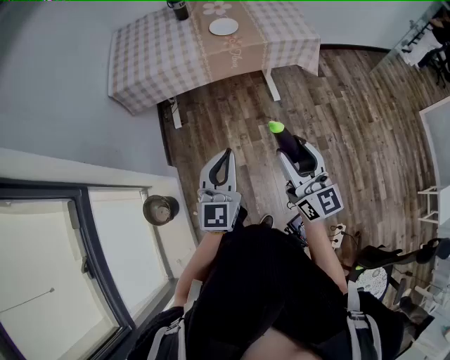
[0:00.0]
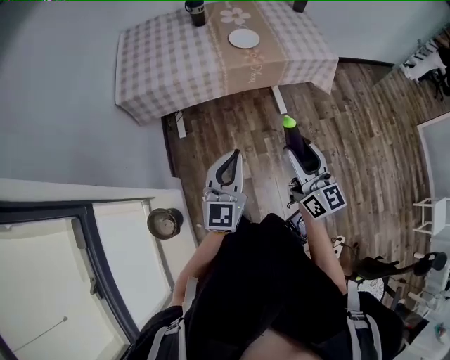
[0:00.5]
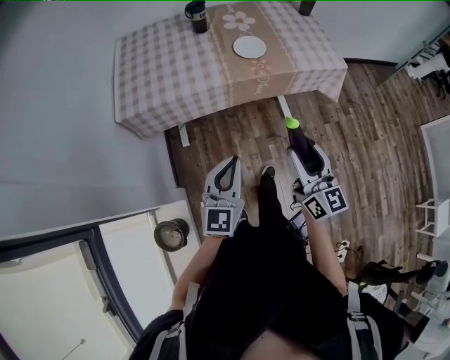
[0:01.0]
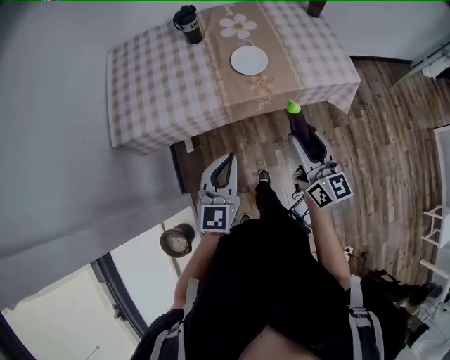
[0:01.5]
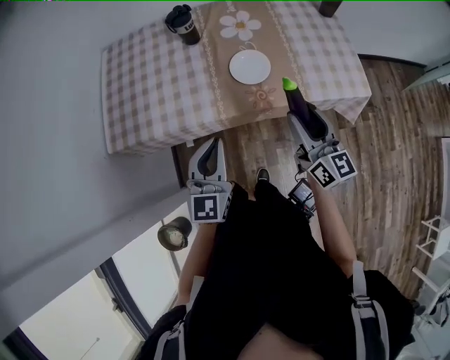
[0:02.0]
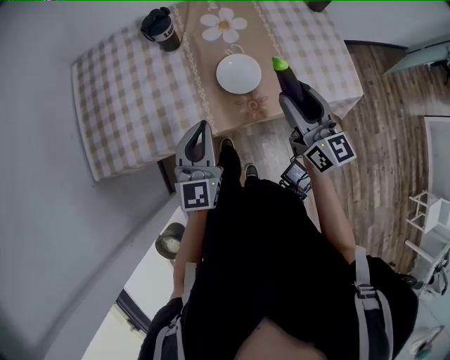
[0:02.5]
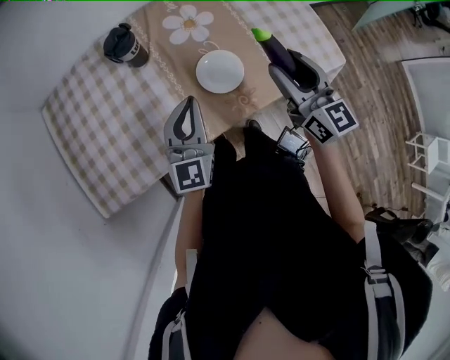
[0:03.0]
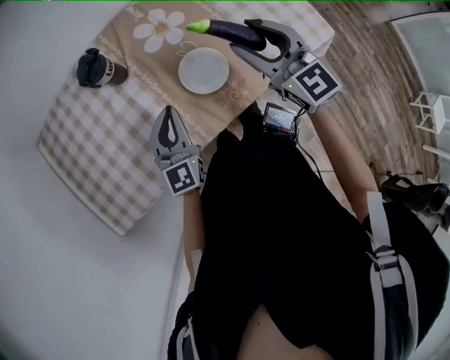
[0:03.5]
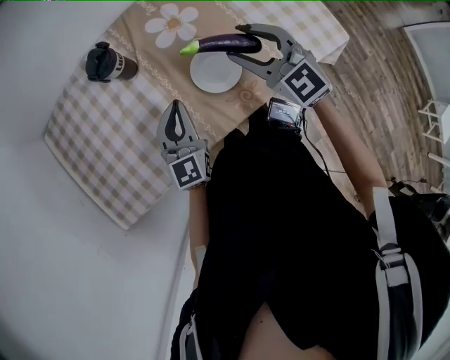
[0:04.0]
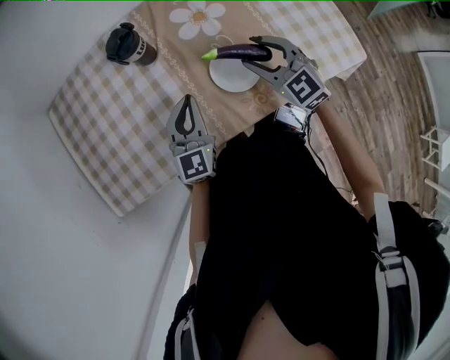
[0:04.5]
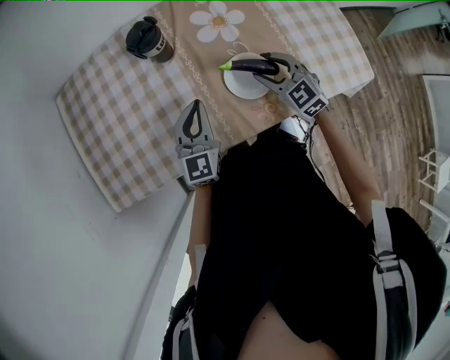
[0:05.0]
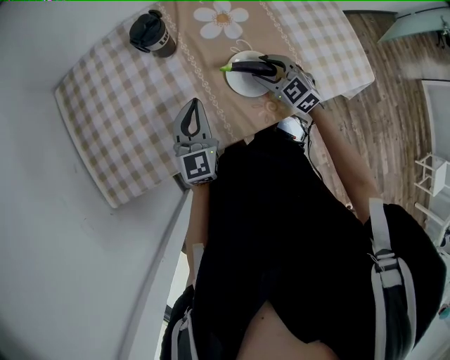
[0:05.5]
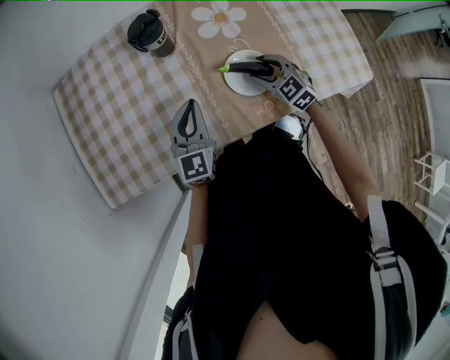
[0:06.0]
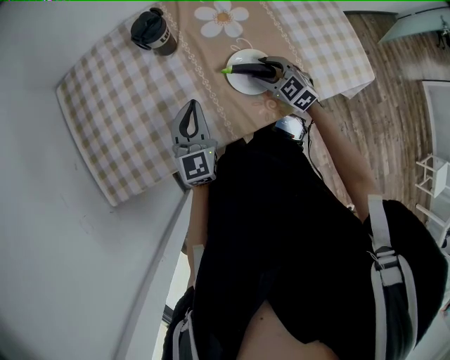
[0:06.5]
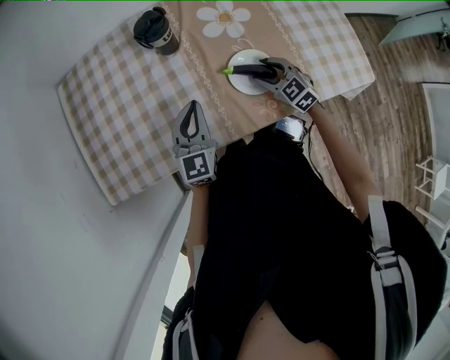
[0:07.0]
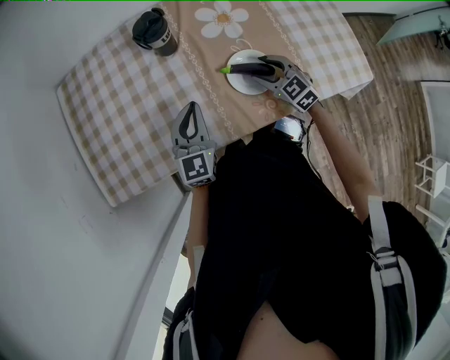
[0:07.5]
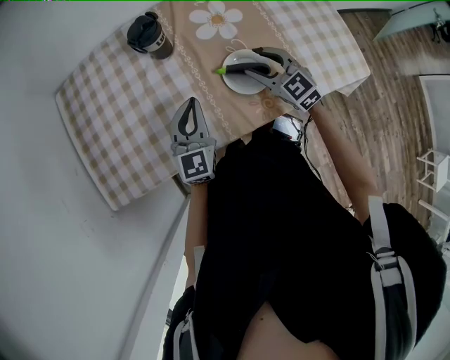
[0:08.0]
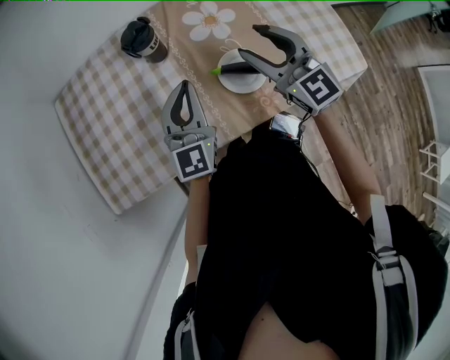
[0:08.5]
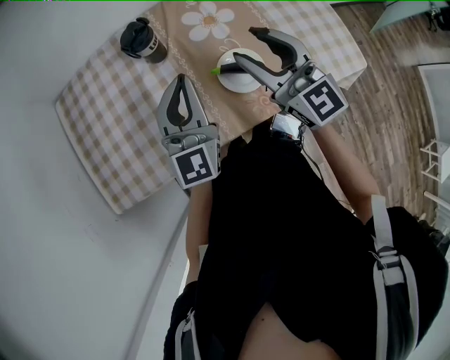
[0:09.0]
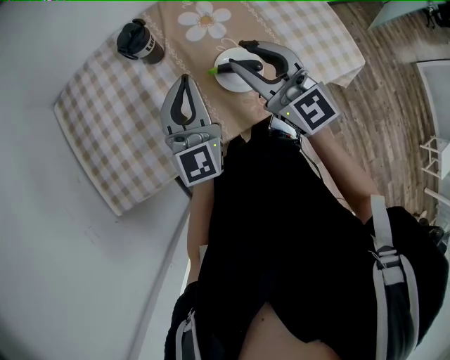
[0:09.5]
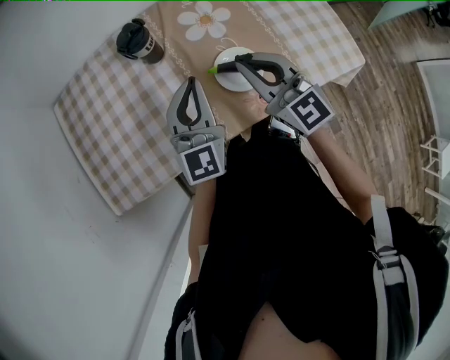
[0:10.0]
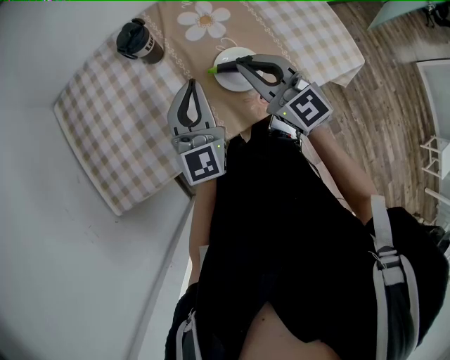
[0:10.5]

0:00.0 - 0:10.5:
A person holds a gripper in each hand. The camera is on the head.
0:00.0 - 0:02.0: The two grippers go roughly 40 cm forward.
0:02.0 - 0:04.0: Both grippers travel together forward, roughly 25 cm. The right gripper changes its angle by approximately 40 degrees.
0:04.0 - 0:06.5: The right gripper shifts some 20 cm downward, and swivels approximately 20 degrees. Meanwhile the left gripper goes roughly 5 cm to the left.
0:06.5 - 0:08.5: The left gripper goes roughly 10 cm upward, while the right gripper travels upward by roughly 25 cm, and points its fingers approximately 30 degrees further upward.
0:08.5 - 0:10.5: The right gripper changes place by approximately 5 cm, and closes up.

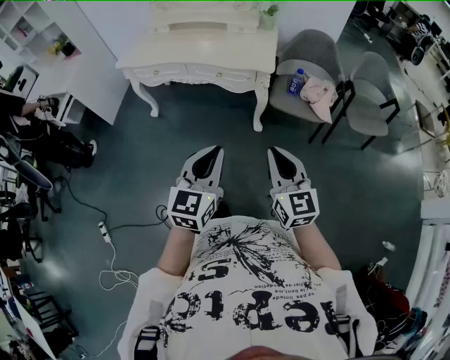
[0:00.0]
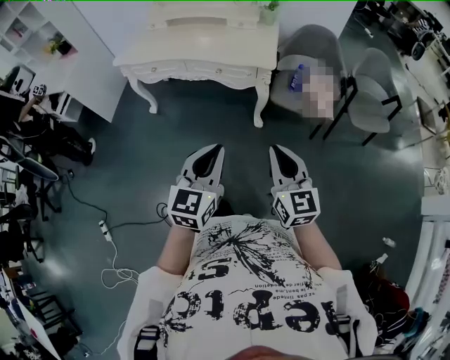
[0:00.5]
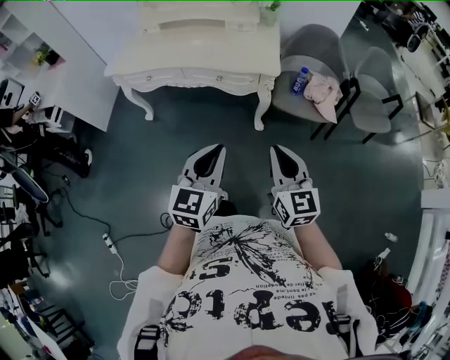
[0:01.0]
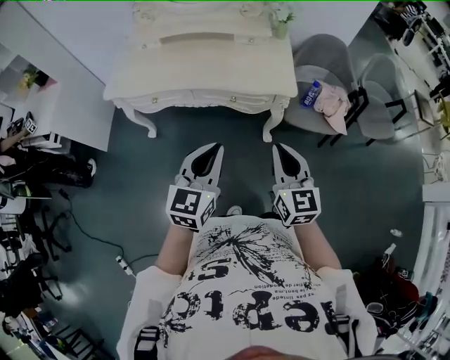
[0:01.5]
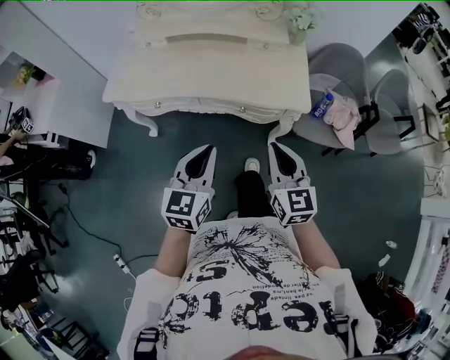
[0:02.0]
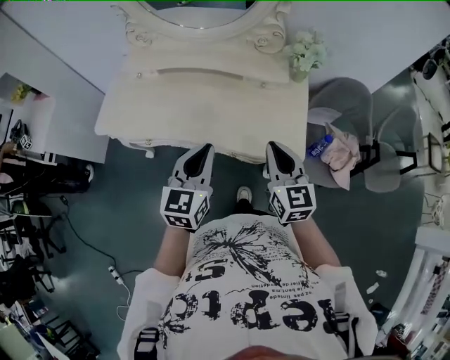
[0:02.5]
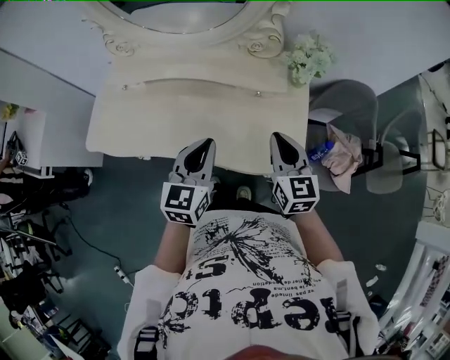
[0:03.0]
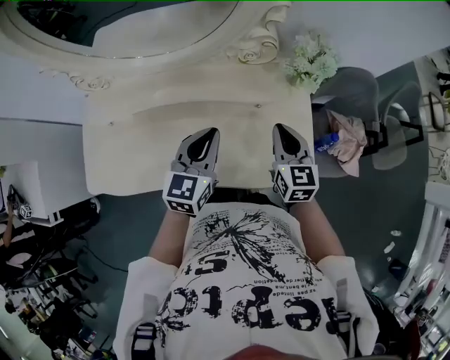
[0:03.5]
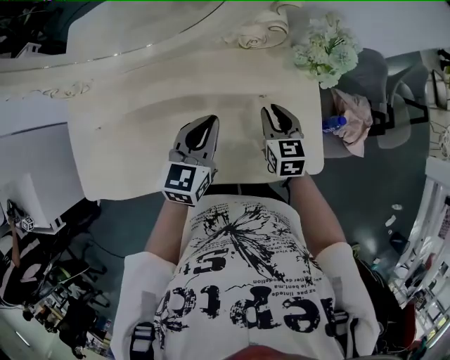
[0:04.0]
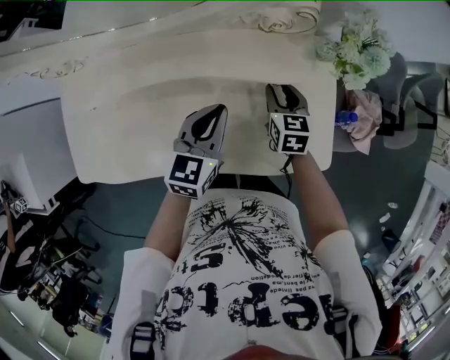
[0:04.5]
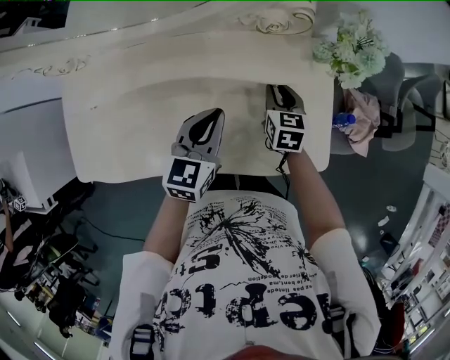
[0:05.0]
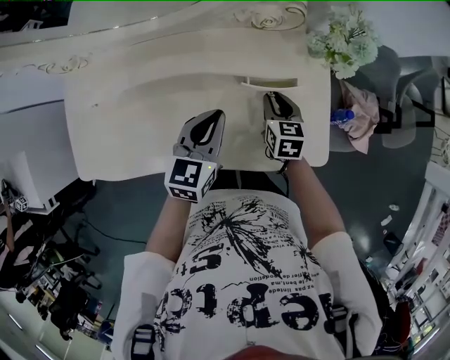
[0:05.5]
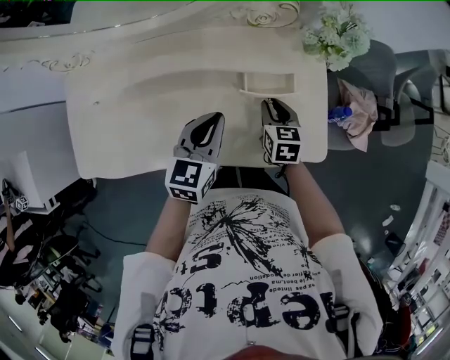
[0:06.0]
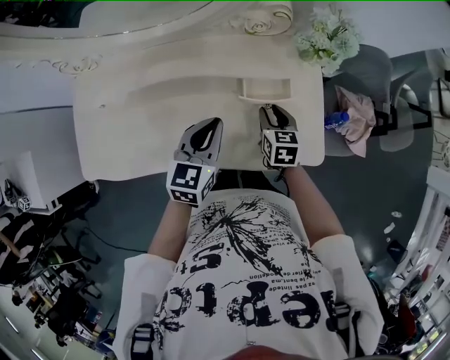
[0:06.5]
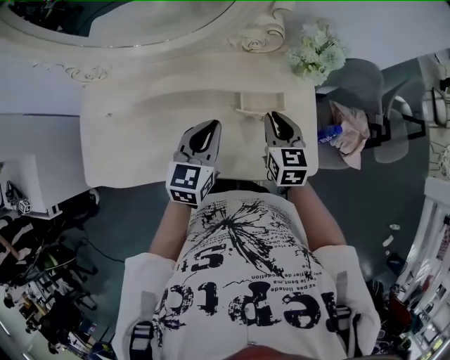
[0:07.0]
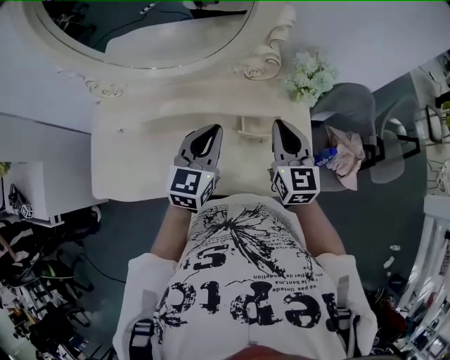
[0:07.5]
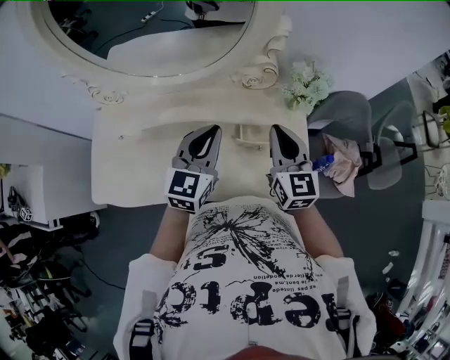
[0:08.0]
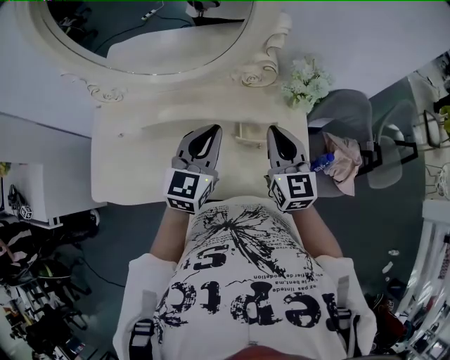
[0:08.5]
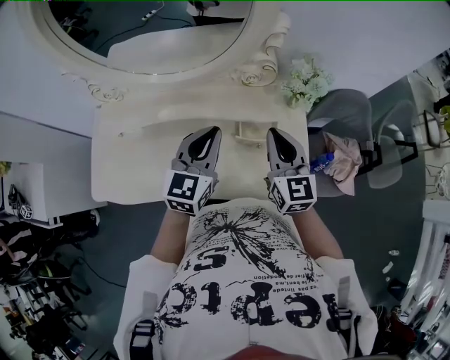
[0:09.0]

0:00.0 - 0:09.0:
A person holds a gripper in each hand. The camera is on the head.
0:00.0 - 0:02.0: The grippers both shift forward and to the left by roughly 40 cm.
0:02.0 - 0:04.5: The two grippers travel together, forward, approximately 50 cm. The right gripper travels downward by some 20 cm, changes its angle by some 30 degrees, and opens up.
0:04.5 - 0:07.0: The left gripper heads upward, covering roughly 5 cm; the right gripper goes about 15 cm upward and backward.
0:07.0 - 0:09.0: Both grippers move upward, approximately 10 cm. The right gripper swivels about 20 degrees.

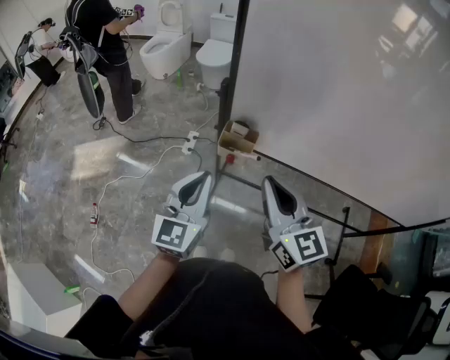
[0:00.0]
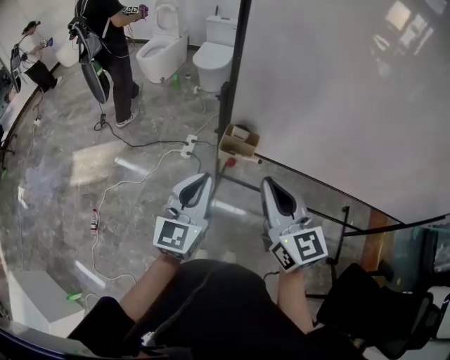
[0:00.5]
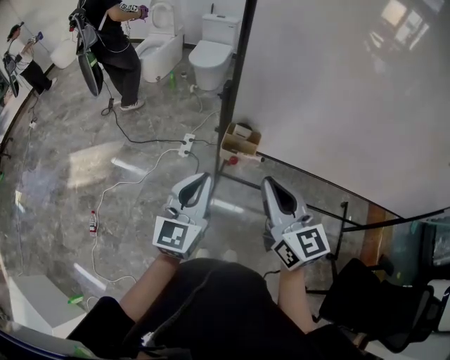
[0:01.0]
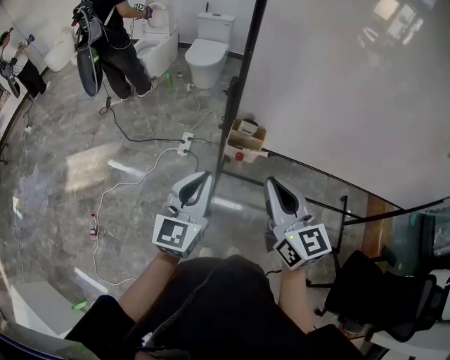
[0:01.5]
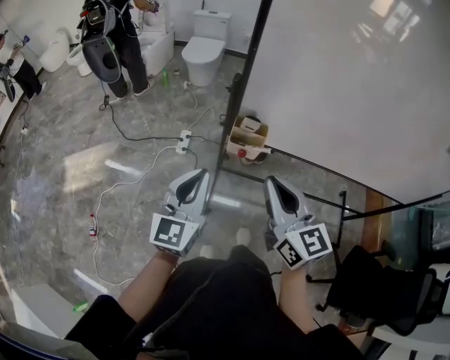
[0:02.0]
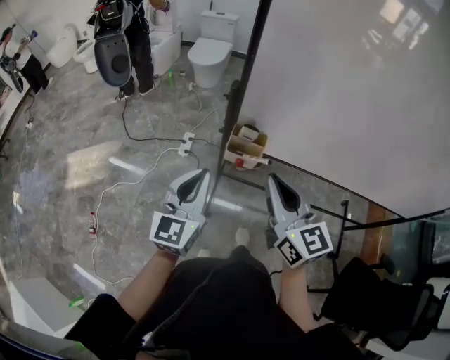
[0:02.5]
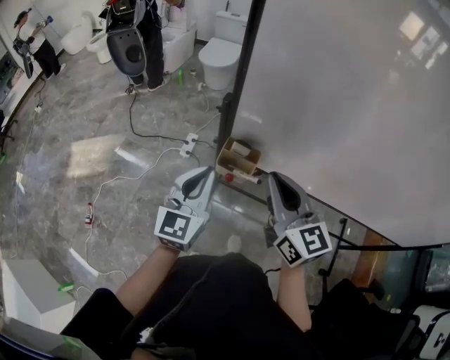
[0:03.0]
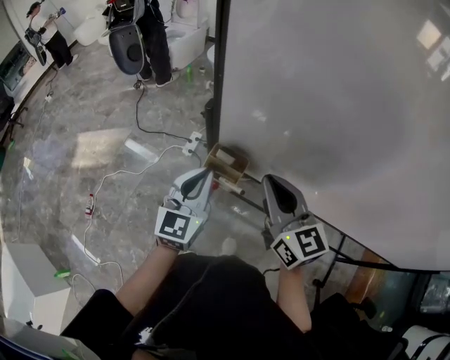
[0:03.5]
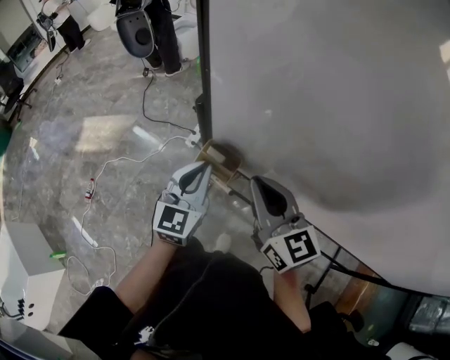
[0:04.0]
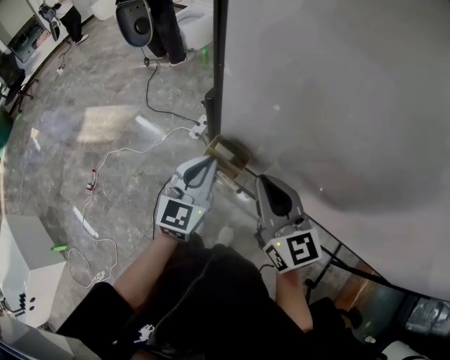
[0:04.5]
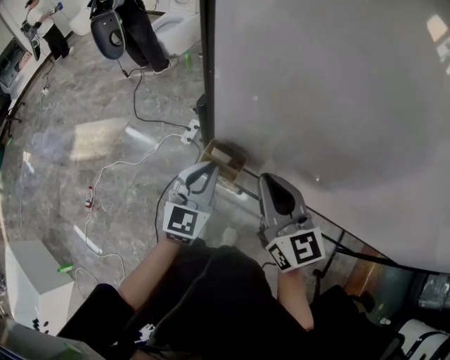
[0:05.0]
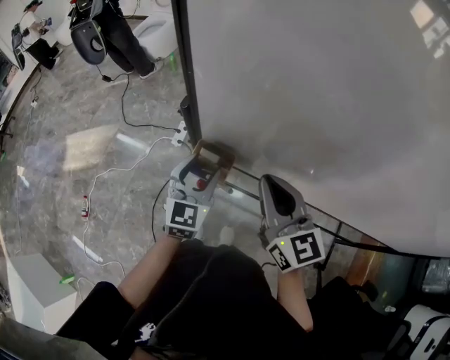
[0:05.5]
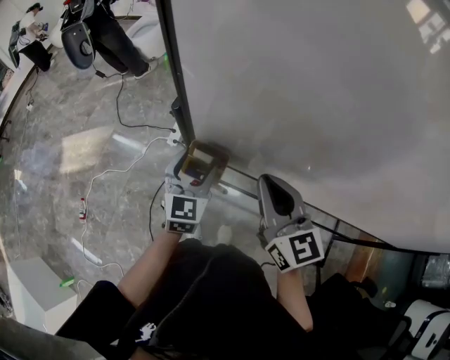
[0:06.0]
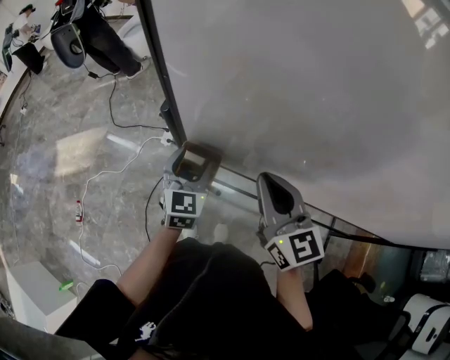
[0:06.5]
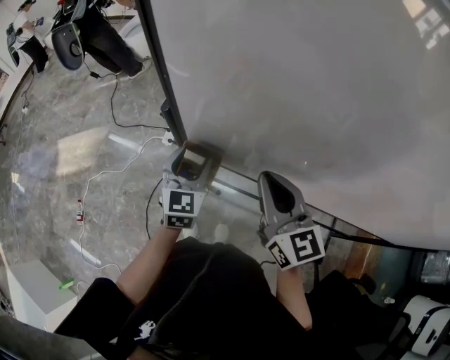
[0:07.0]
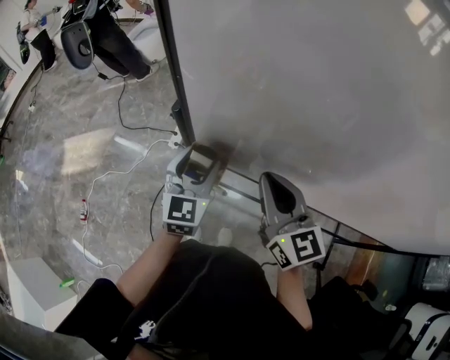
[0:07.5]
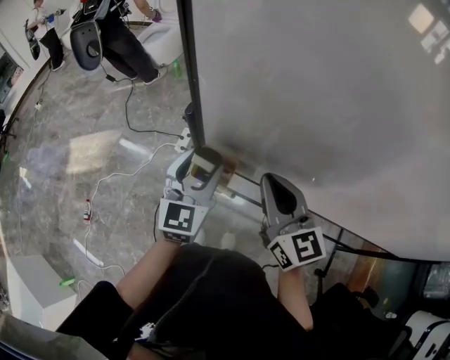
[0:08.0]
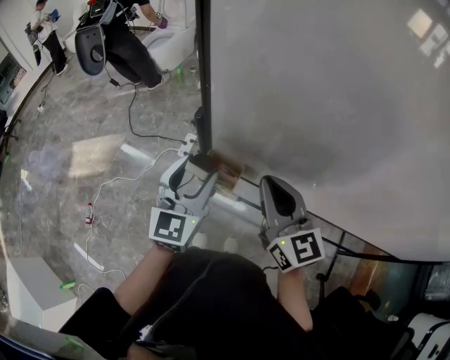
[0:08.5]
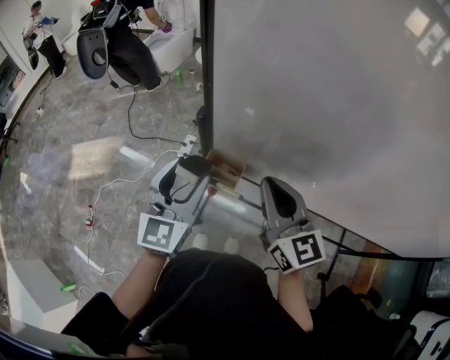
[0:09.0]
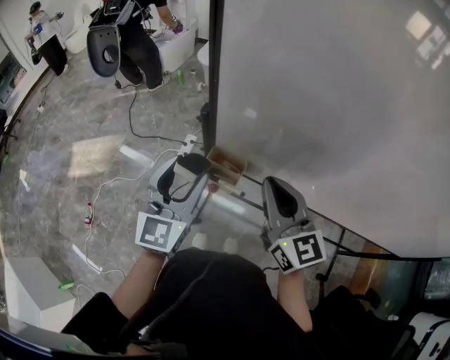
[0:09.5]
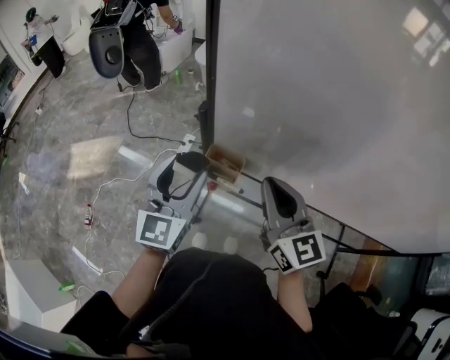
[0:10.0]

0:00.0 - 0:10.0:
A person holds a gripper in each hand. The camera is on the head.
0:00.0 - 0:02.0: Both grippers move to the left, some 5 cm.
0:02.0 - 0:04.0: The left gripper shifts approximately 20 cm to the right and forward; the right gripper shifts roughly 20 cm forward and to the right, and changes its angle by some 20 degrees.
0:04.0 - 0:06.0: The left gripper goes roughly 5 cm downward, and opens its fingers.
0:06.0 - 0:08.0: The left gripper is displaced upward by roughly 10 cm.
0:08.0 - 0:10.0: The left gripper travels to the left by some 5 cm.
